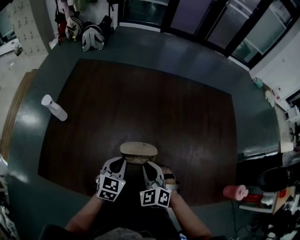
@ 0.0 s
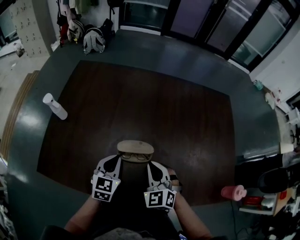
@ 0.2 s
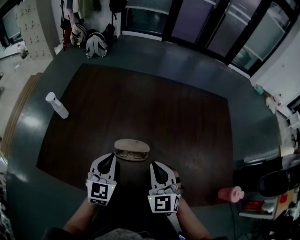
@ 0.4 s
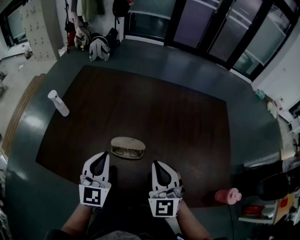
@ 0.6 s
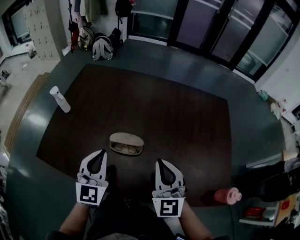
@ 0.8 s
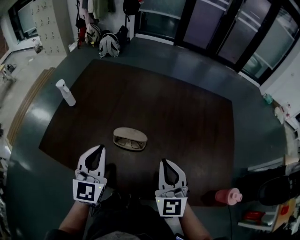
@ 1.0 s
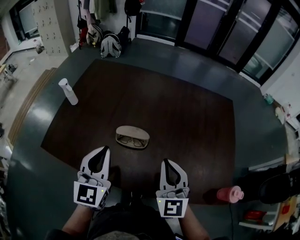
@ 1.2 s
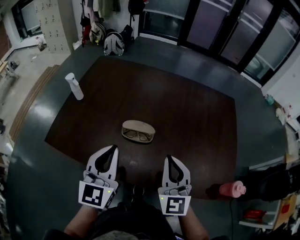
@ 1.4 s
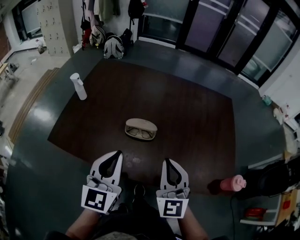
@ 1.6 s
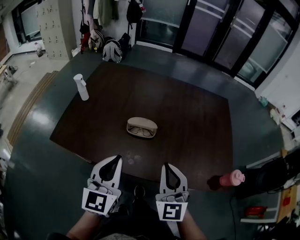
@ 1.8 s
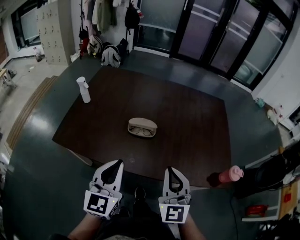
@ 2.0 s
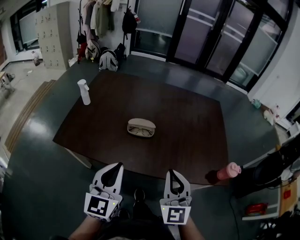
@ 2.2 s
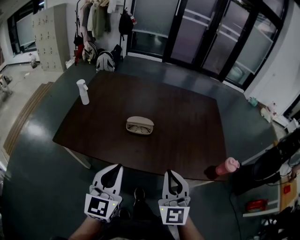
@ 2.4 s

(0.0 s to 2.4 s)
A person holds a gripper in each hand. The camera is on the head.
0.0 s - 1.2 s: The left gripper moves upward and backward, roughly 20 cm, and rotates approximately 30 degrees. Meanwhile the right gripper is displaced upward, to the right and backward by roughly 20 cm, and tips its fingers upward by approximately 40 degrees.
1.2 s - 2.4 s: The grippers both shift backward by approximately 20 cm.

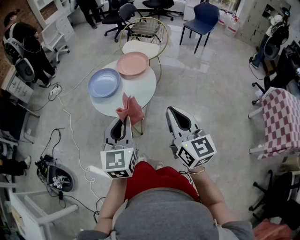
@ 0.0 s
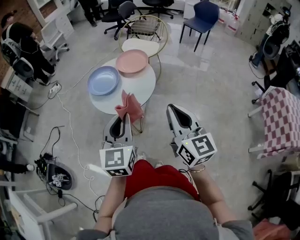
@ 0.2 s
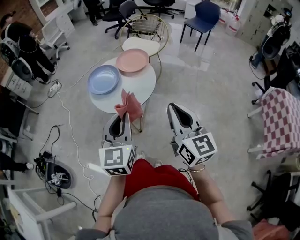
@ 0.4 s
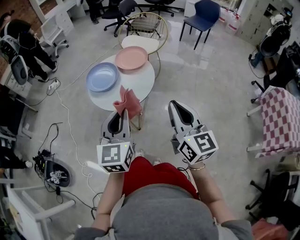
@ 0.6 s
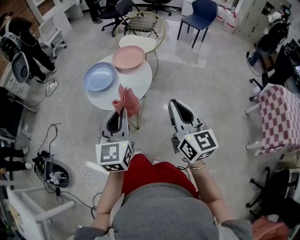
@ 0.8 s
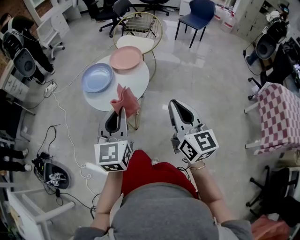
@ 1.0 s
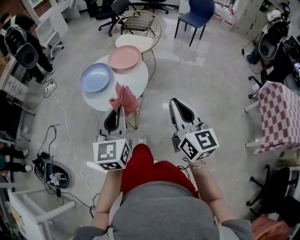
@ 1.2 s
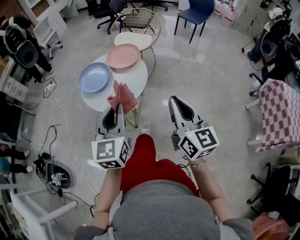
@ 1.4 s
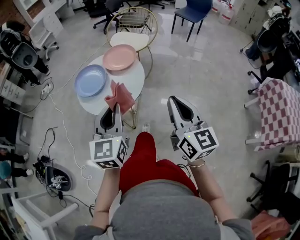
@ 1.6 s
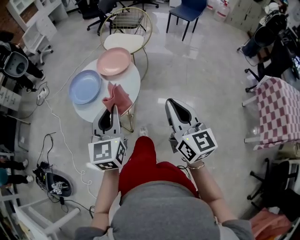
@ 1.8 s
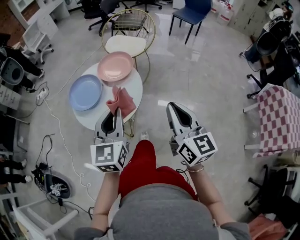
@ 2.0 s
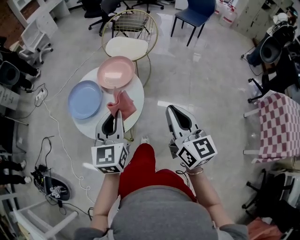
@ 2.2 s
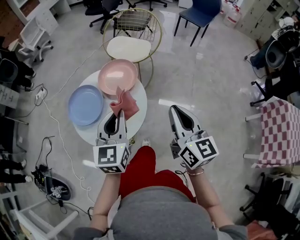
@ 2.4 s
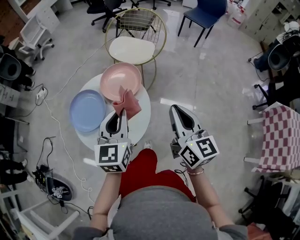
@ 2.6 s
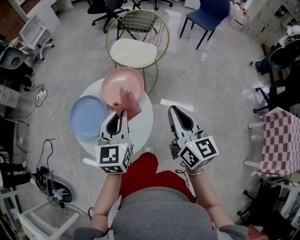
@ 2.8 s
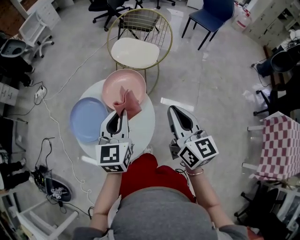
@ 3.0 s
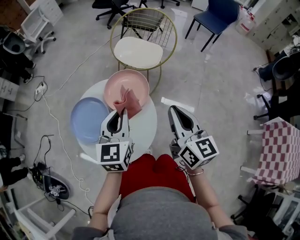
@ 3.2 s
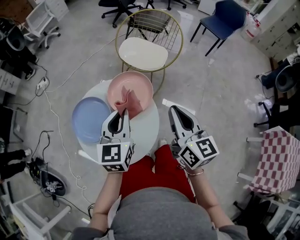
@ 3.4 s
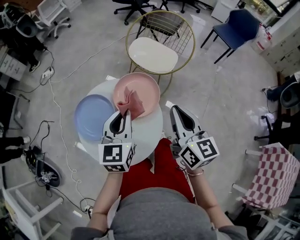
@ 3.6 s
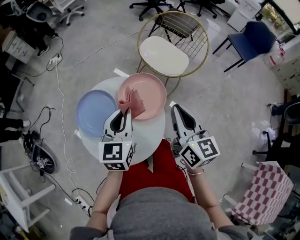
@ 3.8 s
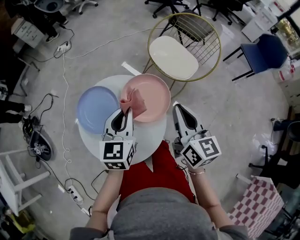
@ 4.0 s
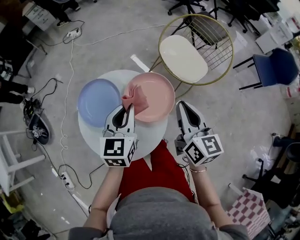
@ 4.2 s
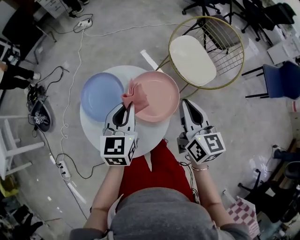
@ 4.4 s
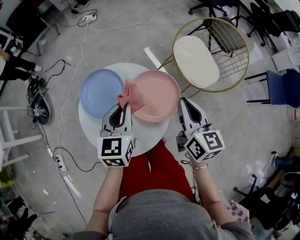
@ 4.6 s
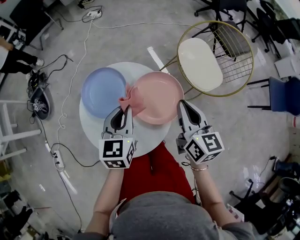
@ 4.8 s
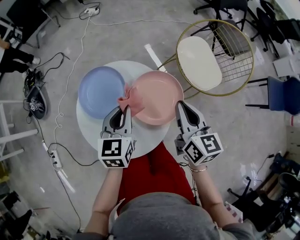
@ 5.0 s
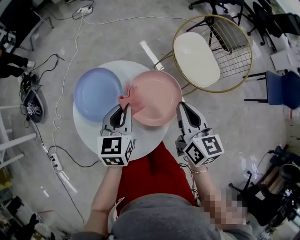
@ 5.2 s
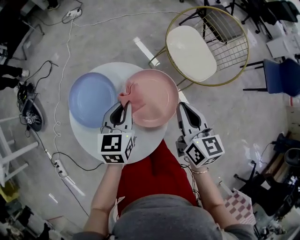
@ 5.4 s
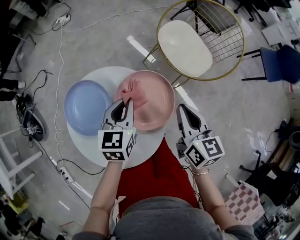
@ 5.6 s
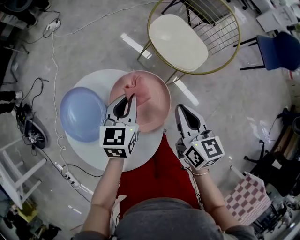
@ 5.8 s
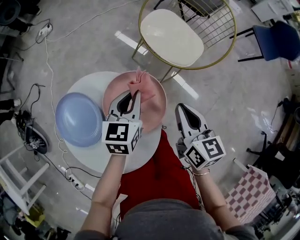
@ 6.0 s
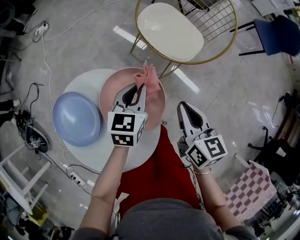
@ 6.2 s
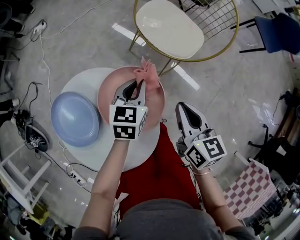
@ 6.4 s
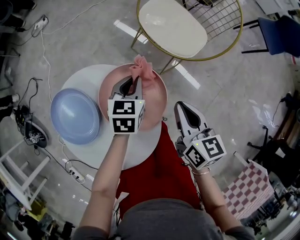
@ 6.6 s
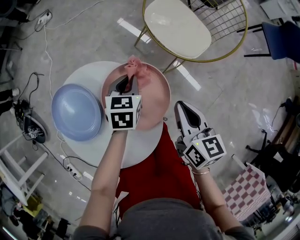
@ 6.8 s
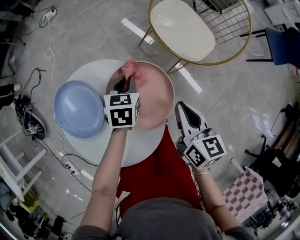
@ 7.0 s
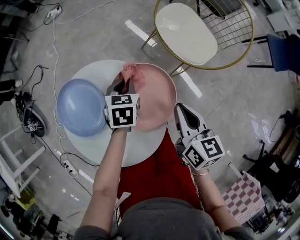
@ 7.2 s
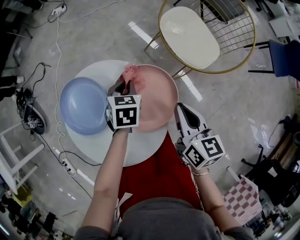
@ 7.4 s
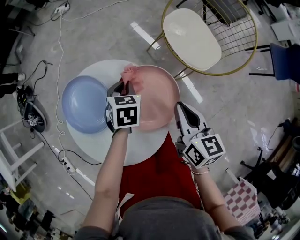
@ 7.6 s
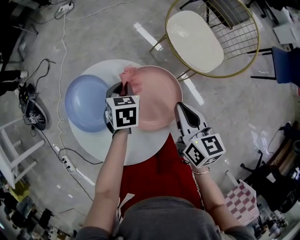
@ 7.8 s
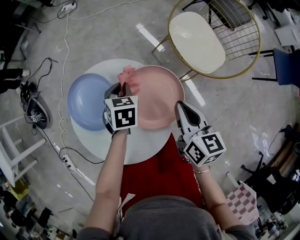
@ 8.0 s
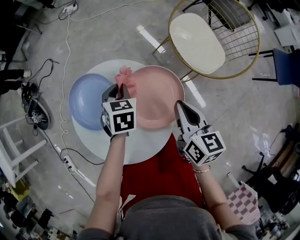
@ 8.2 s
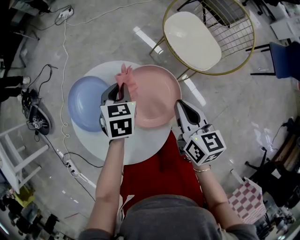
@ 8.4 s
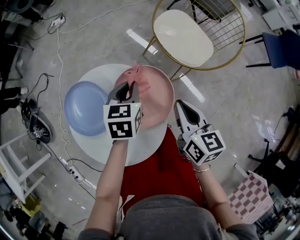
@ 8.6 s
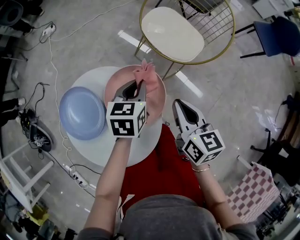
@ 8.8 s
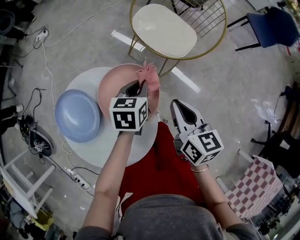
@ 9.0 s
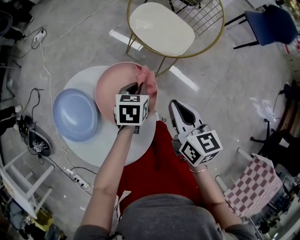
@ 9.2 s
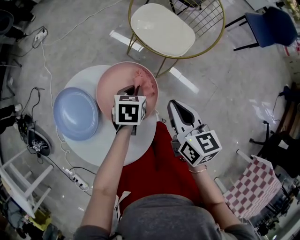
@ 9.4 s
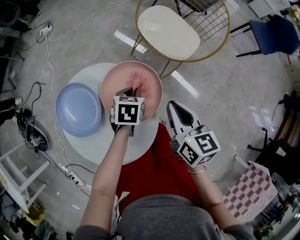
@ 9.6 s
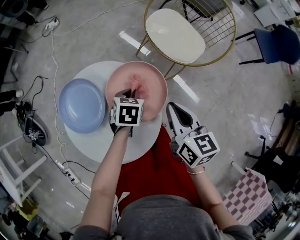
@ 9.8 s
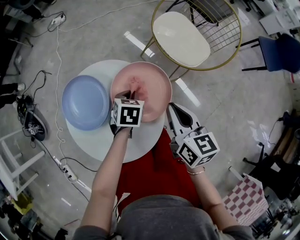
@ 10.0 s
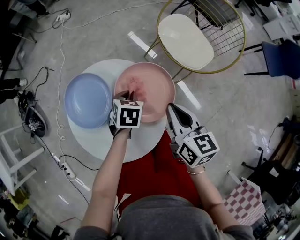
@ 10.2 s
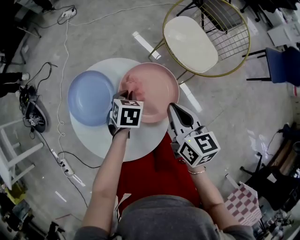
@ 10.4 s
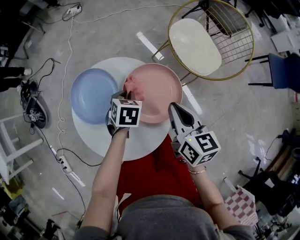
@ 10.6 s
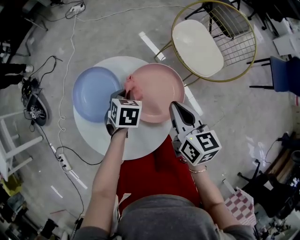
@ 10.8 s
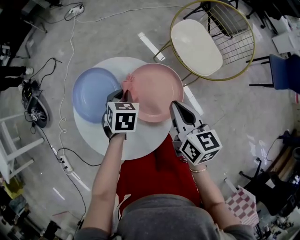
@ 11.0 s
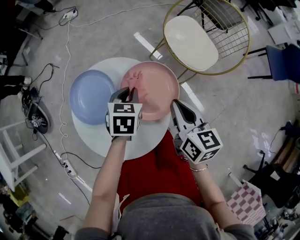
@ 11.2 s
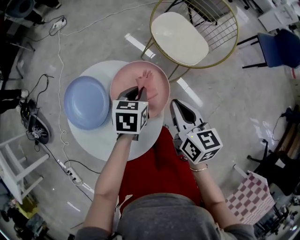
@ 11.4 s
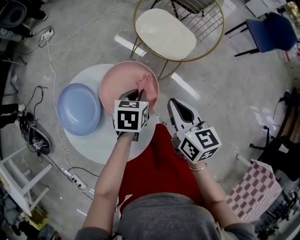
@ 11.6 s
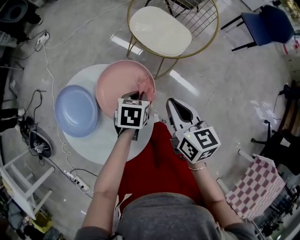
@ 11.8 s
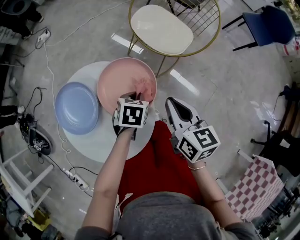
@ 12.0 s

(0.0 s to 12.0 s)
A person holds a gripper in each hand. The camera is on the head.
0.0 s - 1.6 s: The left gripper travels forward by roughly 5 cm. The right gripper is displaced to the right by about 5 cm.
1.6 s - 3.0 s: Both grippers travel together forward, roughly 30 cm.
3.0 s - 4.4 s: The right gripper ends up some 20 cm from where it was, and swivels about 30 degrees; the left gripper changes place by some 10 cm, and rotates roughly 40 degrees.
4.4 s - 6.0 s: The right gripper moves downward, about 10 cm. Meanwhile the left gripper is displaced downward, to the right and forward by roughly 15 cm, and turns by about 20 degrees.
6.0 s - 7.6 s: The left gripper heads to the left and downward, covering some 15 cm, and swivels approximately 30 degrees; the right gripper shifts by roughly 5 cm.
7.6 s - 9.0 s: The right gripper moves approximately 5 cm; the left gripper ends up about 15 cm from where it was, and changes its angle by roughly 30 degrees.
9.0 s - 10.4 s: The right gripper goes approximately 10 cm to the left; the left gripper moves to the left, some 15 cm, and rotates about 30 degrees.
10.4 s - 12.0 s: The right gripper moves approximately 10 cm. The left gripper changes place by some 15 cm.

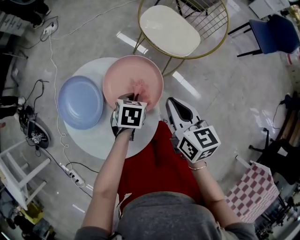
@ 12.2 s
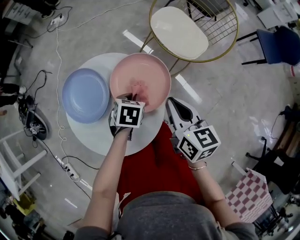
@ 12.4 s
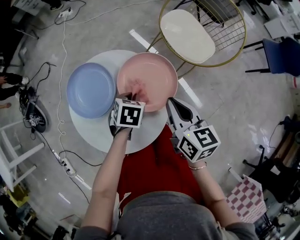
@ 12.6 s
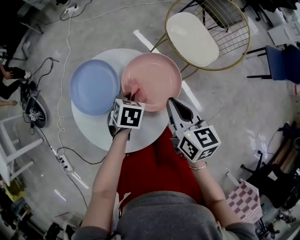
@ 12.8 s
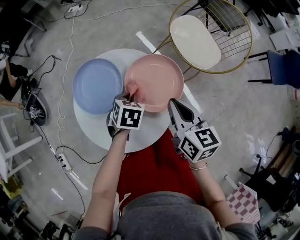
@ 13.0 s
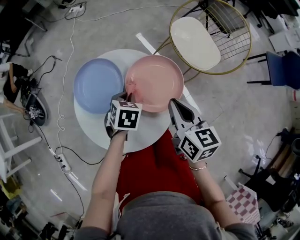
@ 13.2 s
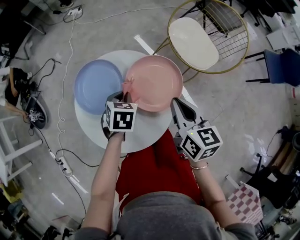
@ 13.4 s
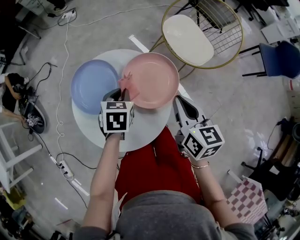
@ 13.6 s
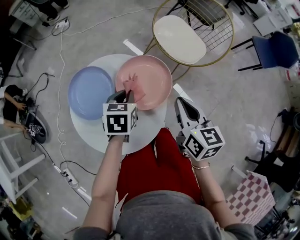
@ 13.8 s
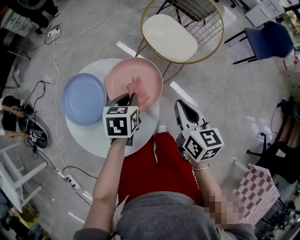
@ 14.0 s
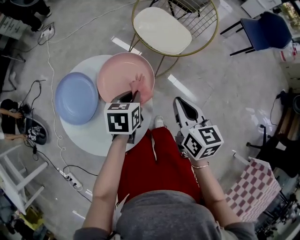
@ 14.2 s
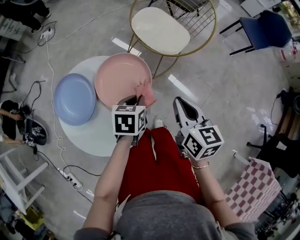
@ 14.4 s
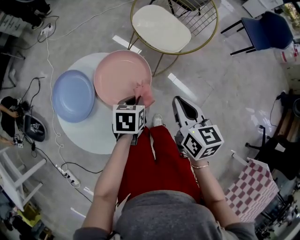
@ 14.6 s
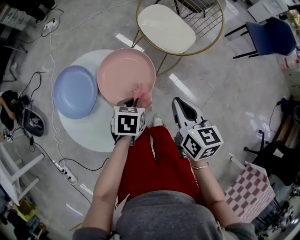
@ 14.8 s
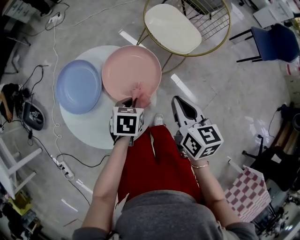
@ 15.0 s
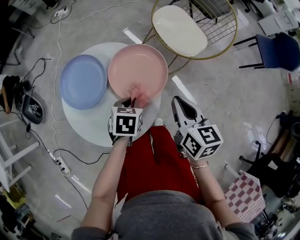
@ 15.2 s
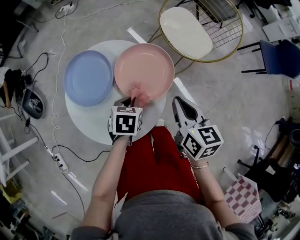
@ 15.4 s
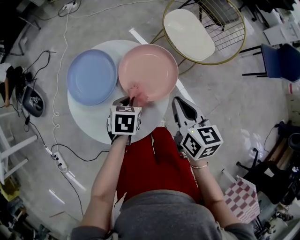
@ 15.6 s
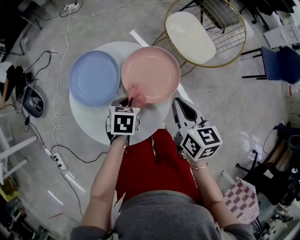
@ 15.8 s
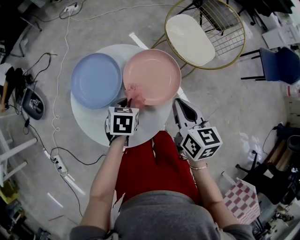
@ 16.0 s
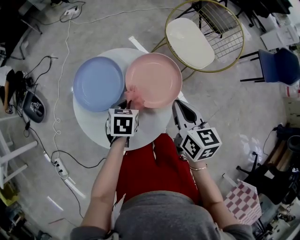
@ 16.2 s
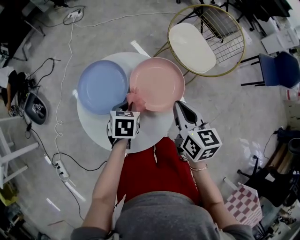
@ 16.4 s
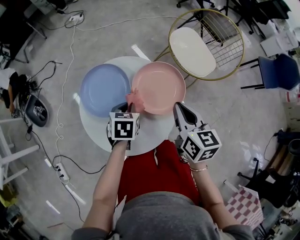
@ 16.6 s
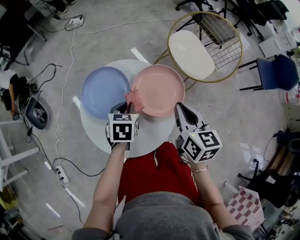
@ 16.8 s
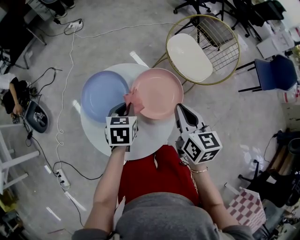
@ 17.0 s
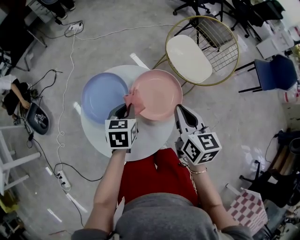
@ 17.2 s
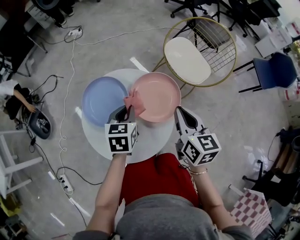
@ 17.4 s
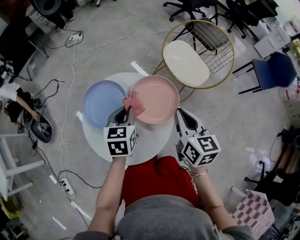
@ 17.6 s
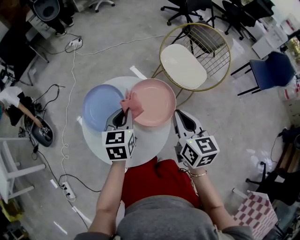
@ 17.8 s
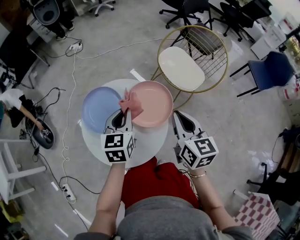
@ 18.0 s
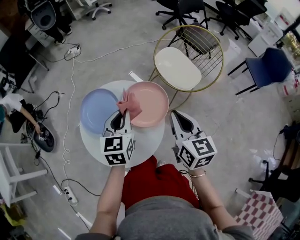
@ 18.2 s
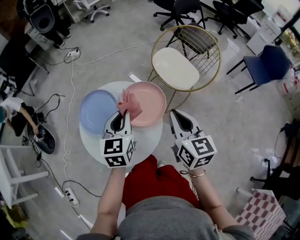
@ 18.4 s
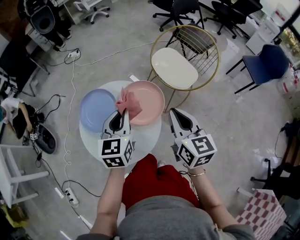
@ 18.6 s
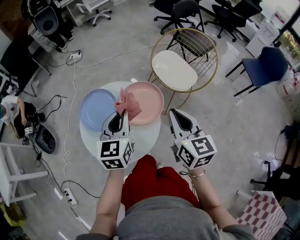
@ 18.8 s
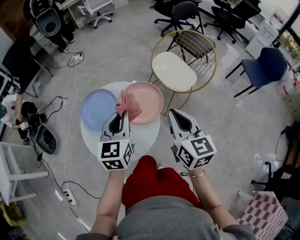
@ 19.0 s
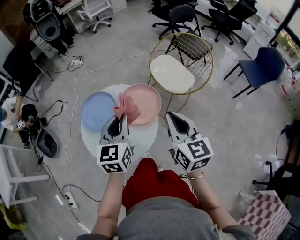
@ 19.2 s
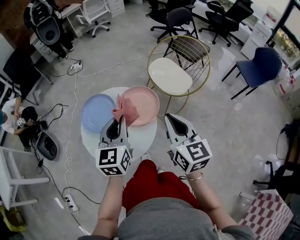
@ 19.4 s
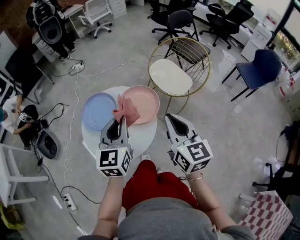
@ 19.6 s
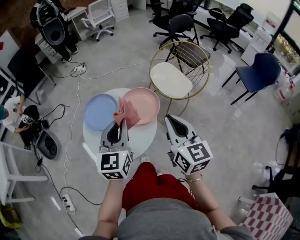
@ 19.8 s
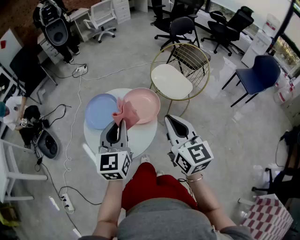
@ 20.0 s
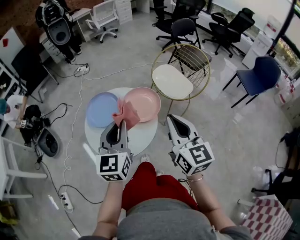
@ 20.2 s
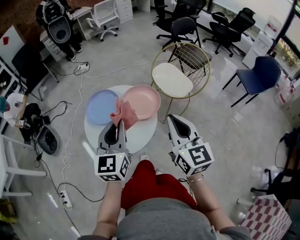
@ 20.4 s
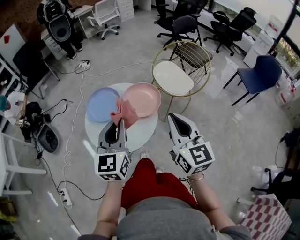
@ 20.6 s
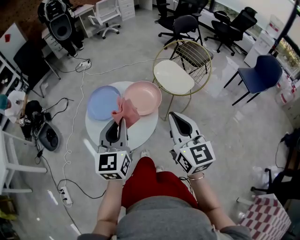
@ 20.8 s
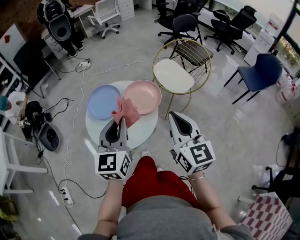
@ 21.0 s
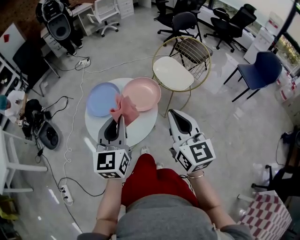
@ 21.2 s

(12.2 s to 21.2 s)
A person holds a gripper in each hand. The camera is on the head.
12.2 s - 13.8 s: The left gripper heads to the left and upward, covering about 10 cm.
13.8 s - 15.2 s: The right gripper reaches about 10 cm to the right, then returns; the left gripper shifts some 10 cm downward, to the right and backward.
15.2 s - 16.6 s: Both grippers travel together to the left, approximately 10 cm.
16.6 s - 18.2 s: The left gripper shifts some 15 cm upward, and angles its fingers upward, by about 30 degrees. The right gripper goes some 10 cm upward and to the right.
18.2 s - 19.8 s: Both grippers move backward and upward, approximately 15 cm.
19.8 s - 21.2 s: Both grippers travel together backward, roughly 5 cm.
